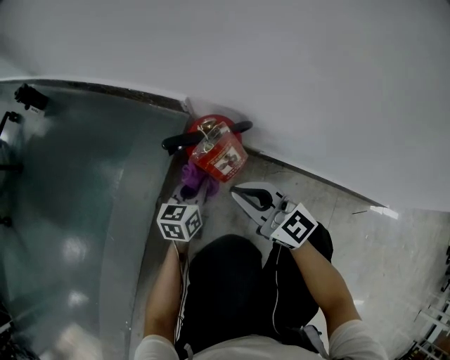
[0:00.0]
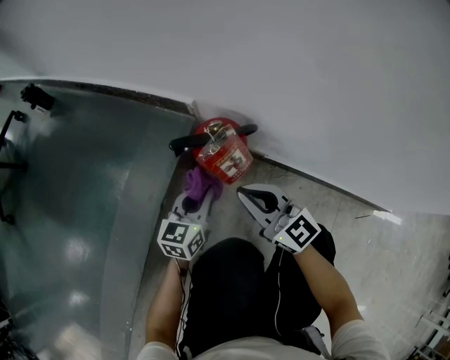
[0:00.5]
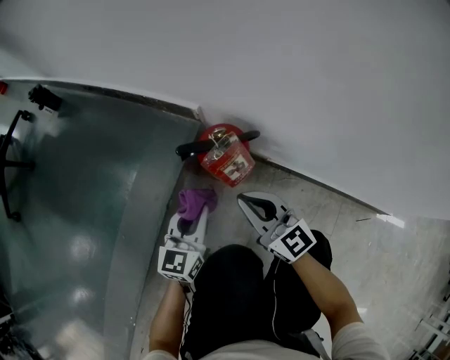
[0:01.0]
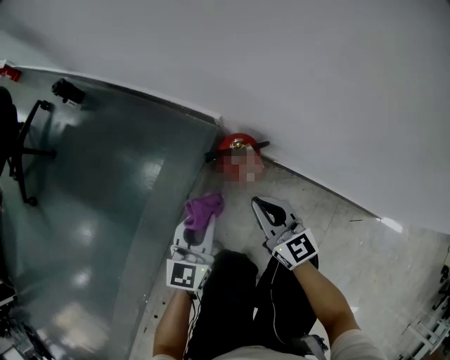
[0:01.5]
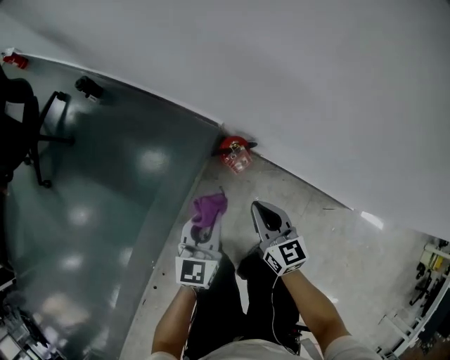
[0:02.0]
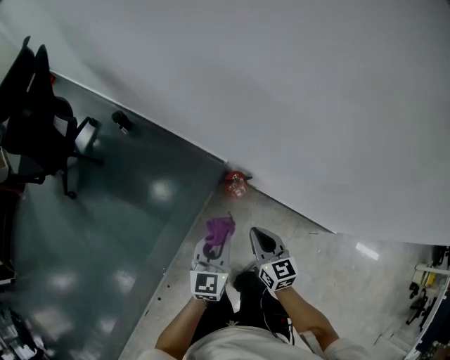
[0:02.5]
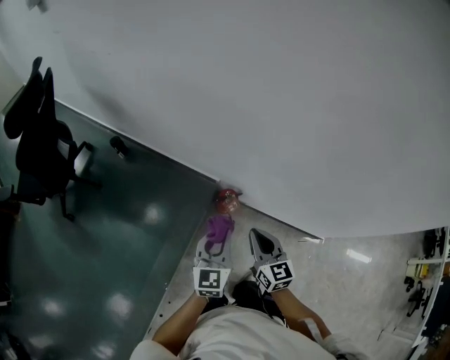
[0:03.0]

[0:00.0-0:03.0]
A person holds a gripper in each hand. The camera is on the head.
0:00.0 to 0:01.5: The left gripper is displaced upward by roughly 25 cm, and turns by about 20 degrees. Meanwhile the right gripper goes approximately 10 cm upward.
0:01.5 to 0:03.0: The grippers both shift upward by about 50 cm.

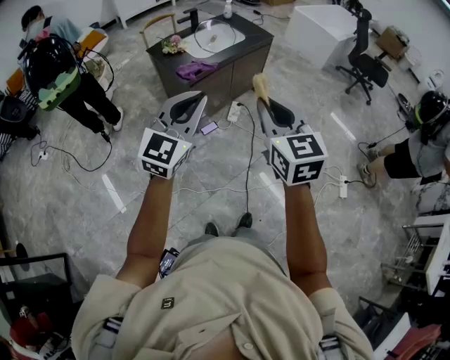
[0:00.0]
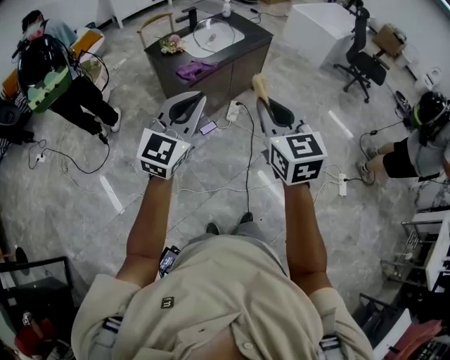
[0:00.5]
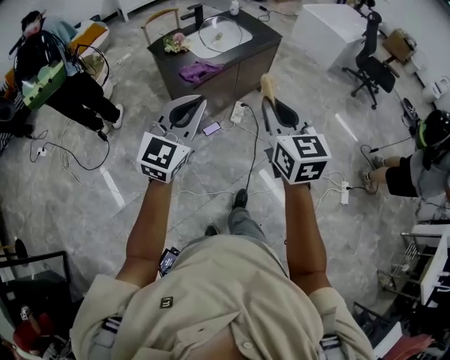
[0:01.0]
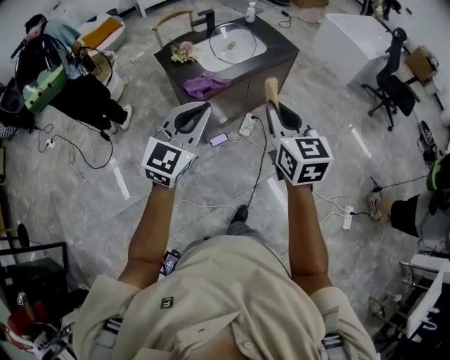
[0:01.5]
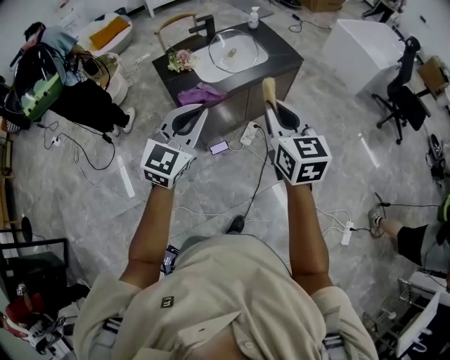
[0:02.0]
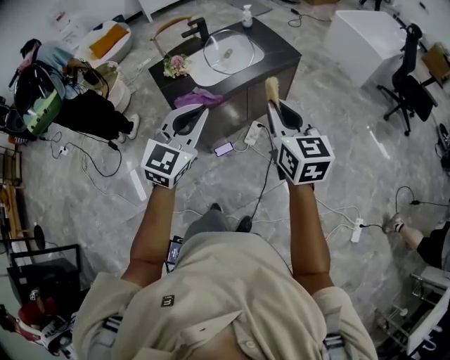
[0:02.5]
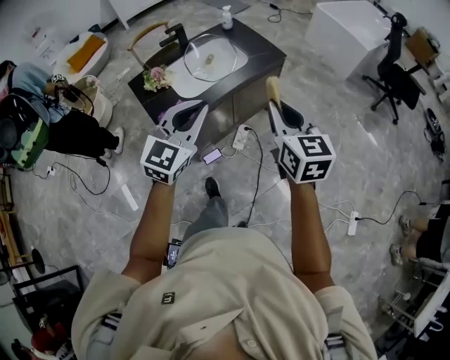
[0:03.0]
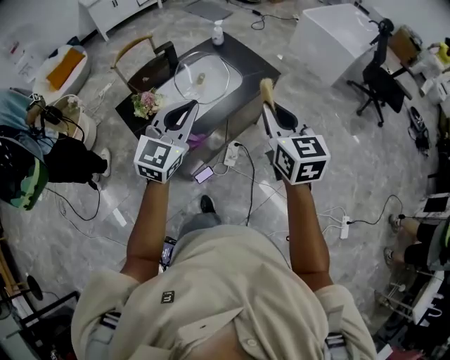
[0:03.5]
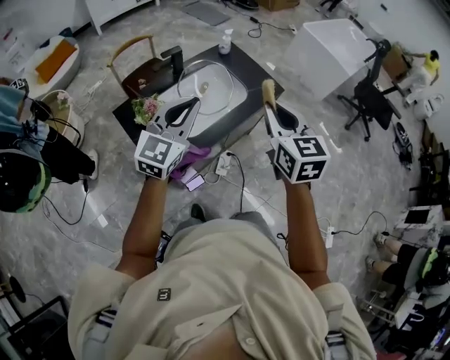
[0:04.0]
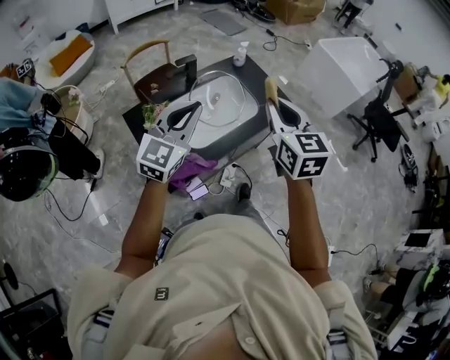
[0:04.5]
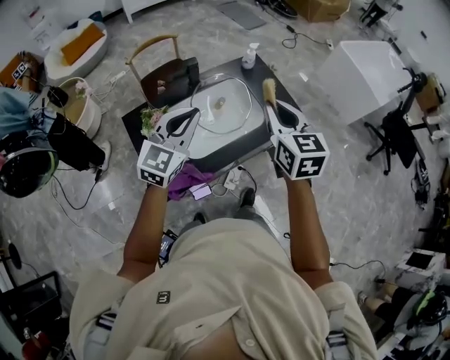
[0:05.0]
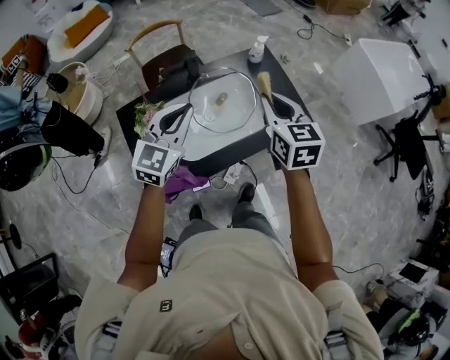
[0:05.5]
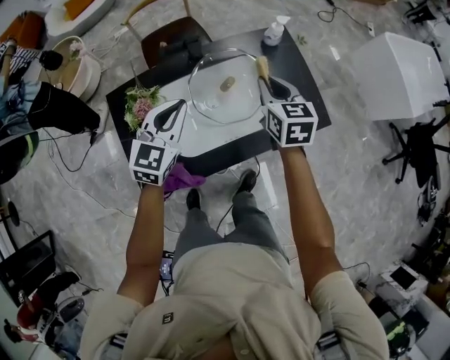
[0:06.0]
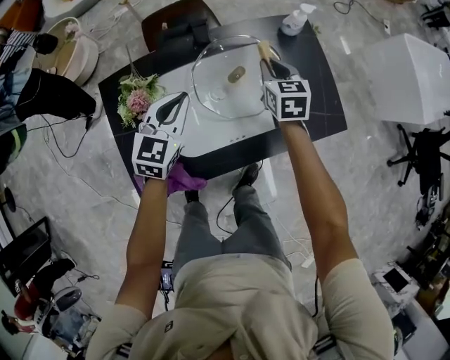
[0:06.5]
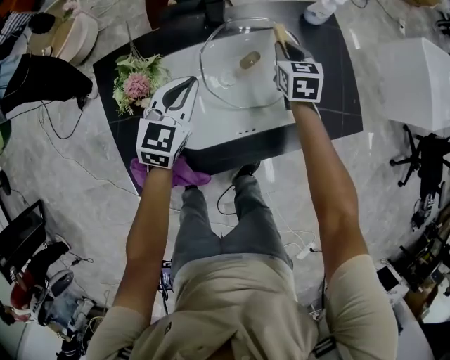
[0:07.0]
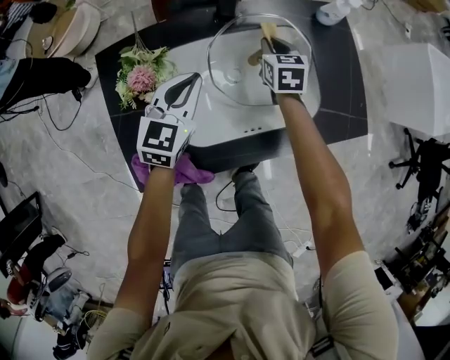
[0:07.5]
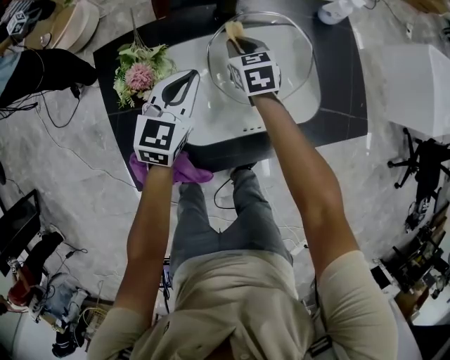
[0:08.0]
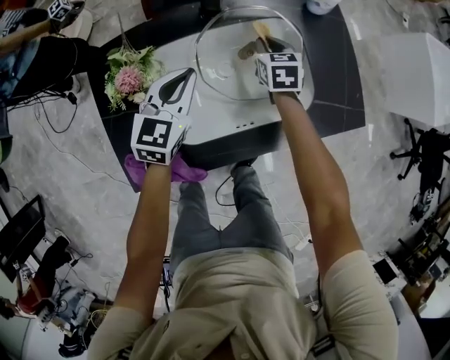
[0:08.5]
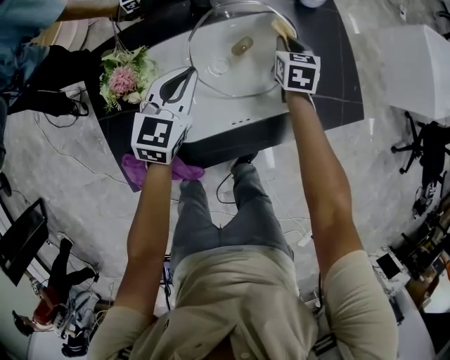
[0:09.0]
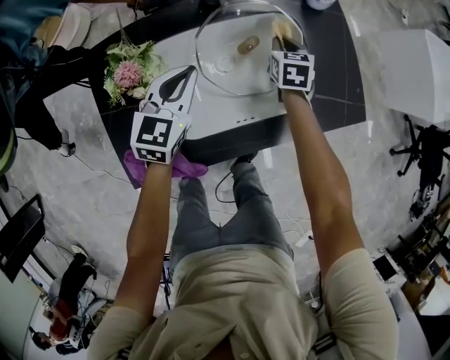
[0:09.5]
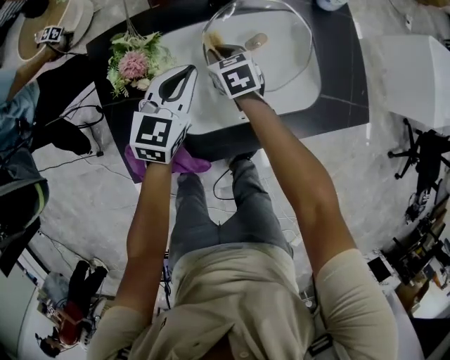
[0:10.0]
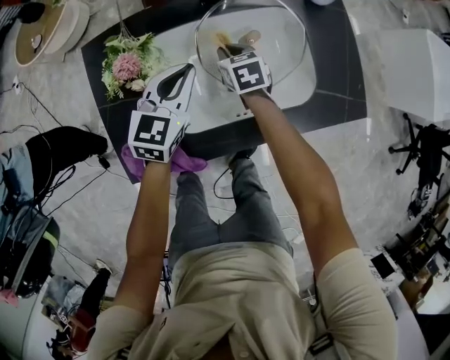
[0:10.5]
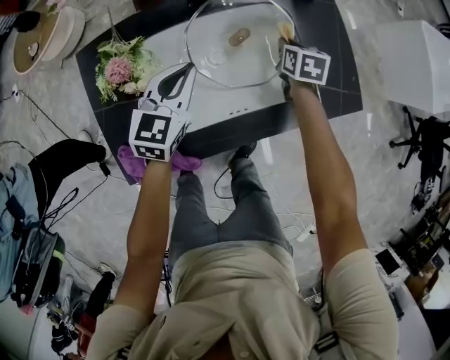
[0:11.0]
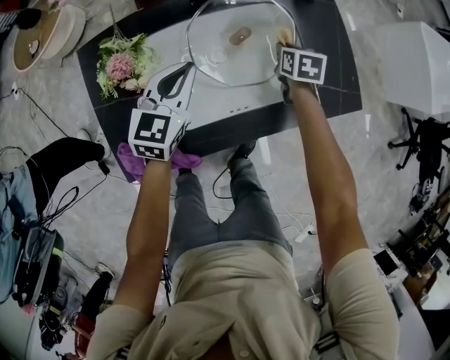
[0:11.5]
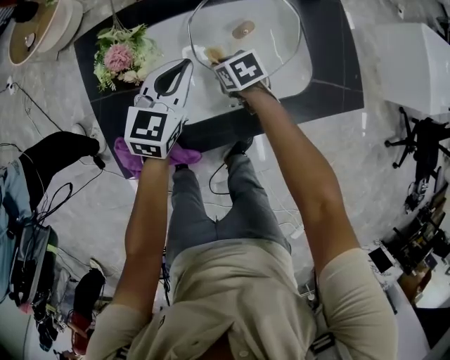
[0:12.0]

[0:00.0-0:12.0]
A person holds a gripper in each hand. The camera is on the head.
0:00.0 to 0:02.0: Both grippers travel together forward, approximately 30 cm.
0:02.0 to 0:04.0: Both grippers move forward, about 30 cm.
0:04.0 to 0:06.0: The grippers both shift forward and downward by some 35 cm. The right gripper rotates roughly 20 degrees. Meanwhile the left gripper rotates approximately 30 degrees.
0:06.0 to 0:08.0: The right gripper moves downward and to the left, approximately 30 cm, while the left gripper shifts about 15 cm downward.
0:08.0 to 0:10.0: The right gripper moves backward, about 5 cm, and moves about 20 cm to the right and comes back.

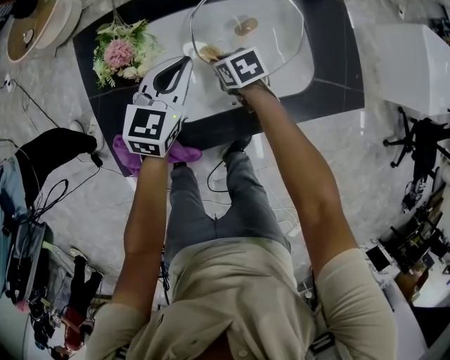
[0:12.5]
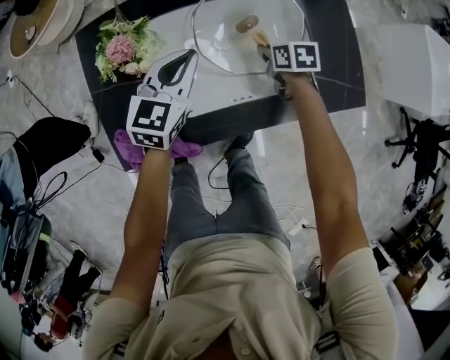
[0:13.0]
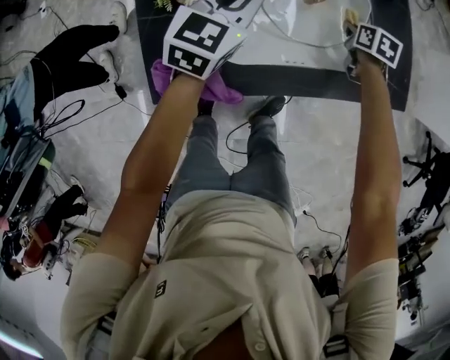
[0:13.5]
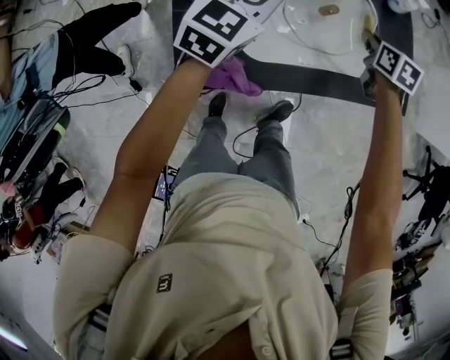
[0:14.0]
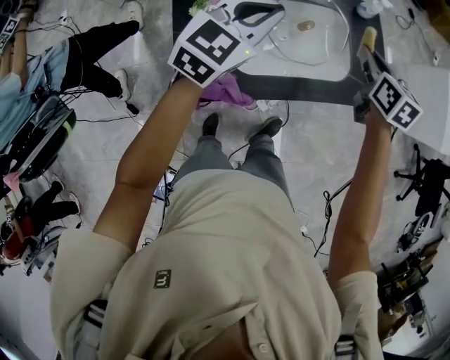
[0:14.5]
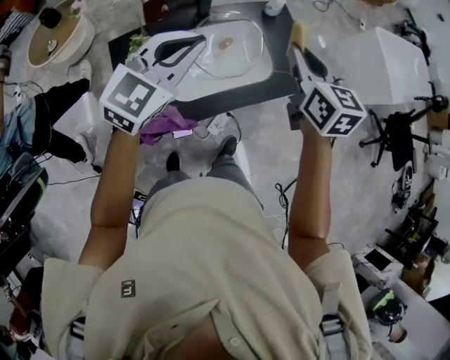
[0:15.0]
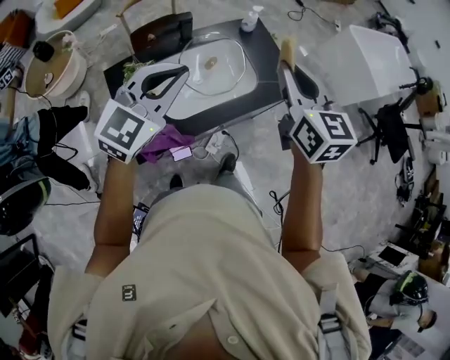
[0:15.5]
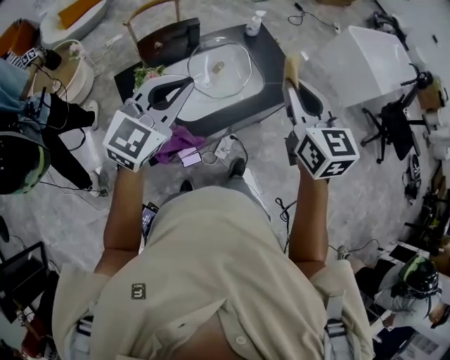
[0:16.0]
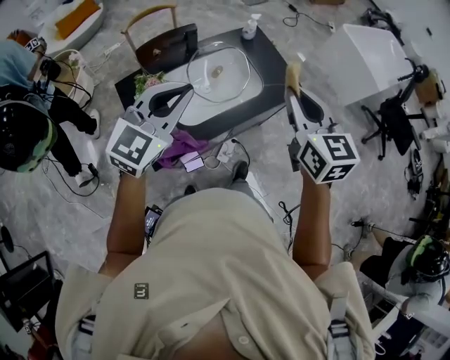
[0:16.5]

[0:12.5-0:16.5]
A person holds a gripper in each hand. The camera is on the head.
0:12.5 to 0:14.5: Both grippers travel together upward, roughly 30 cm. The right gripper swivels approximately 40 degrees; the left gripper rotates some 20 degrees.
0:14.5 to 0:16.5: The left gripper travels backward and upward by some 20 cm. The right gripper is displaced backward and upward by approximately 30 cm, and changes its angle by some 30 degrees.

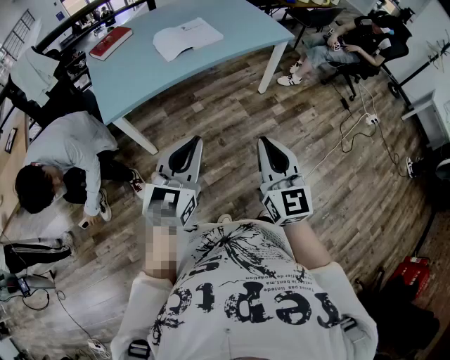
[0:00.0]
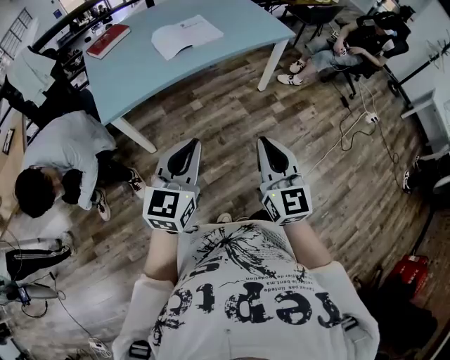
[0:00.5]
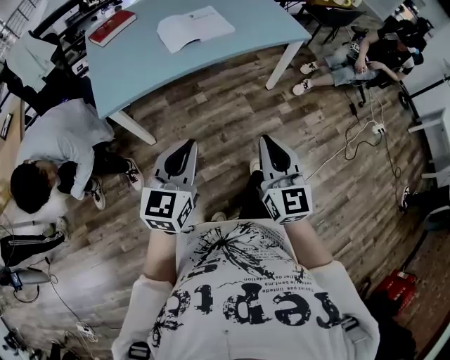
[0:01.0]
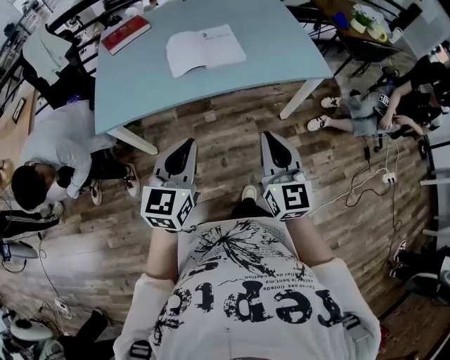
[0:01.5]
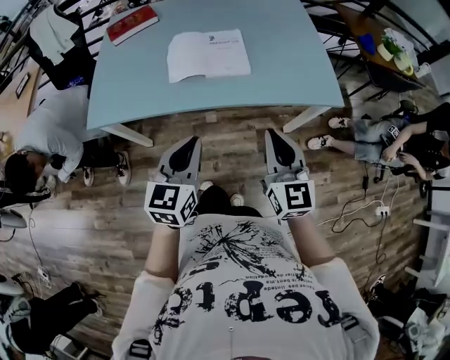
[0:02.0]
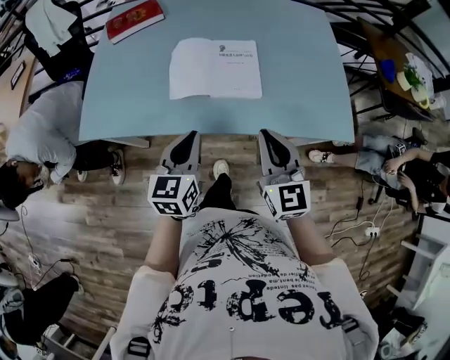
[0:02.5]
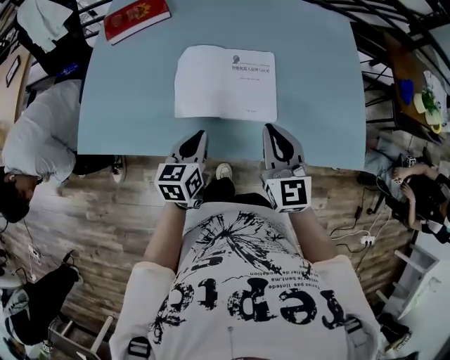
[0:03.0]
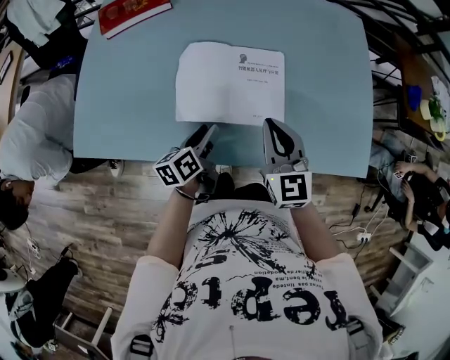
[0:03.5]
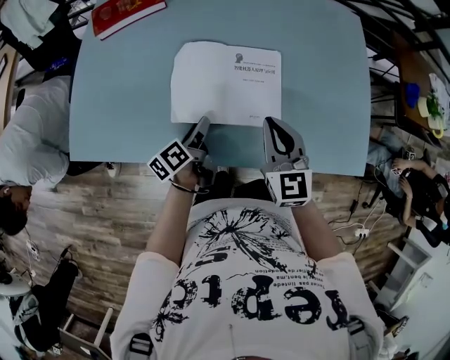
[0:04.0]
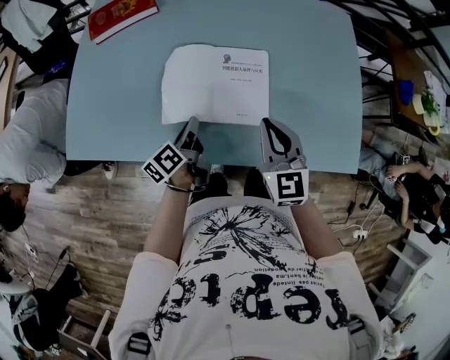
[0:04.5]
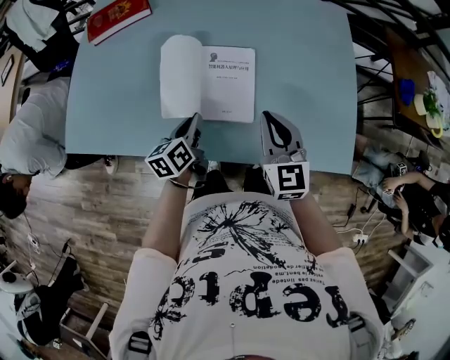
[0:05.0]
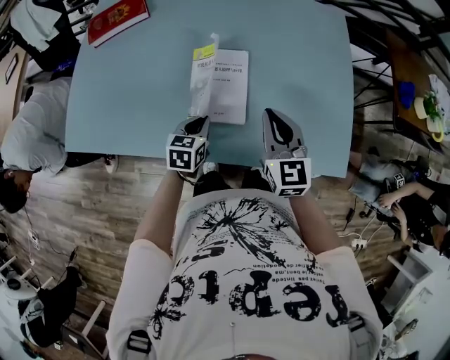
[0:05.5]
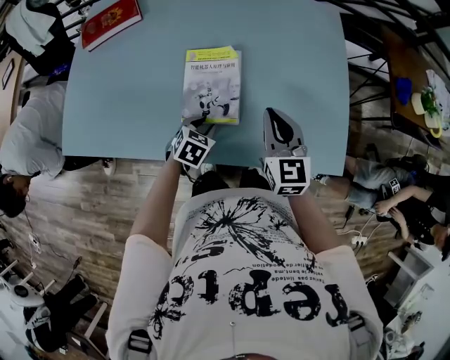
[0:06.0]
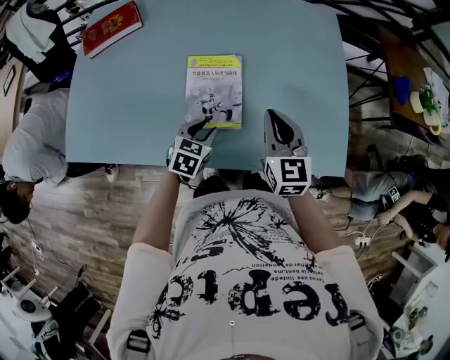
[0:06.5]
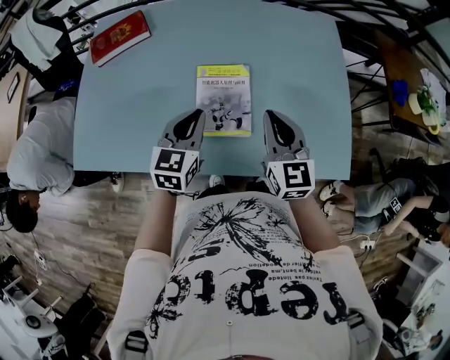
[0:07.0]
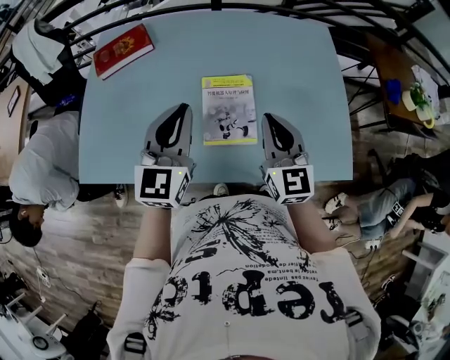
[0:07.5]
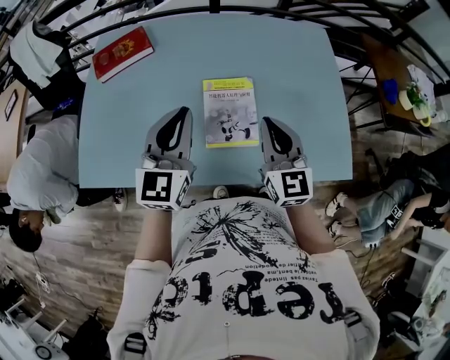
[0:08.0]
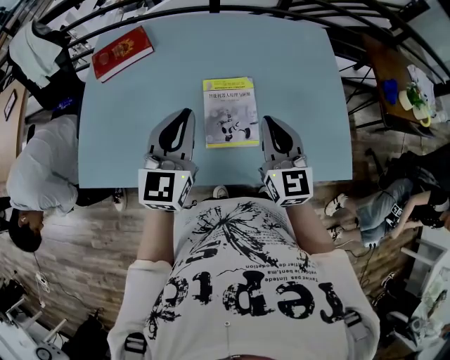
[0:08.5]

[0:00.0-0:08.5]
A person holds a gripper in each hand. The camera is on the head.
0:00.0 to 0:02.0: The left gripper moves about 40 cm, and swivels roughly 30 degrees; the right gripper changes place by roughly 50 cm, and turns by some 20 degrees.
0:02.0 to 0:04.0: The left gripper moves forward and downward, about 40 cm, twists about 70 degrees counterclockwise, seen from behind, and opens its fingers, while the right gripper heads forward, covering some 35 cm.
0:04.0 to 0:06.5: The two grippers go some 15 cm to the right. The left gripper rolls clockwise, seen from behind, by approximately 70 degrees, and closes, then opens again.
0:06.5 to 0:08.5: The right gripper goes about 10 cm to the left and upward. Meanwhile the left gripper goes roughly 30 cm upward and to the left, points its fingers about 40 degrees further upward, and closes up.
